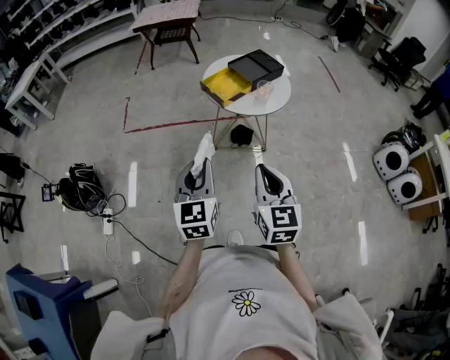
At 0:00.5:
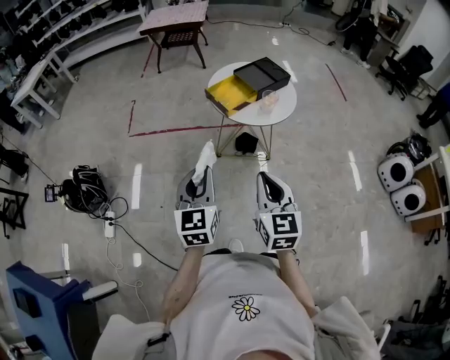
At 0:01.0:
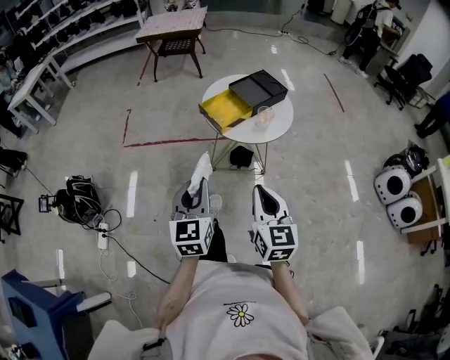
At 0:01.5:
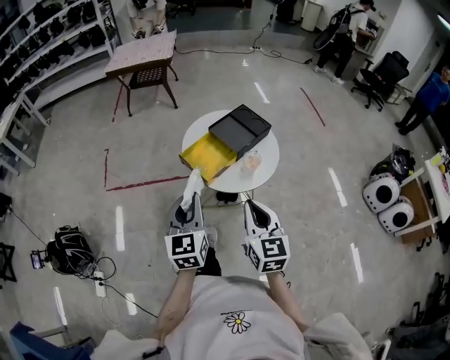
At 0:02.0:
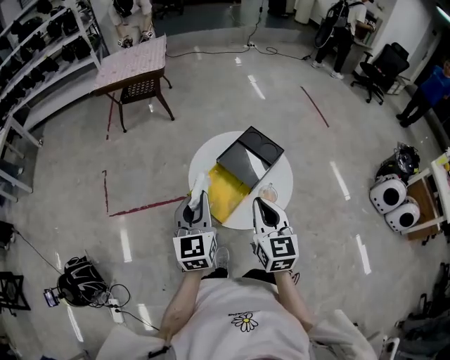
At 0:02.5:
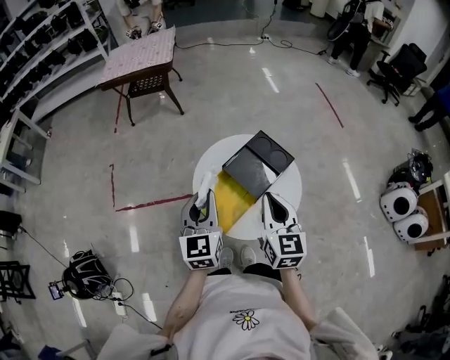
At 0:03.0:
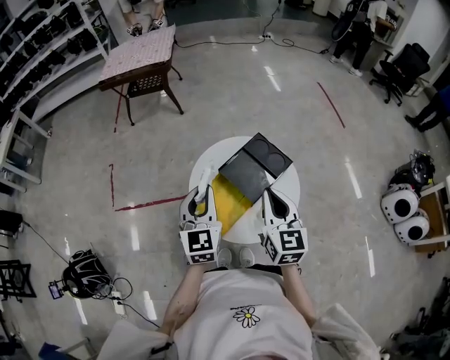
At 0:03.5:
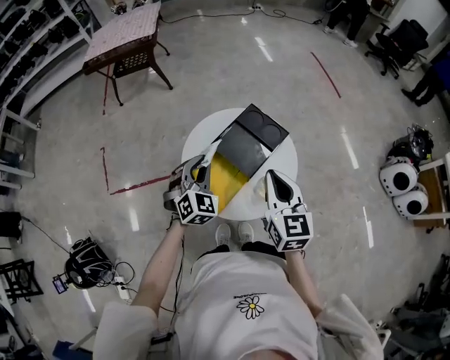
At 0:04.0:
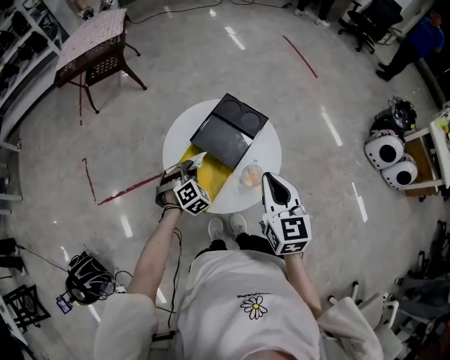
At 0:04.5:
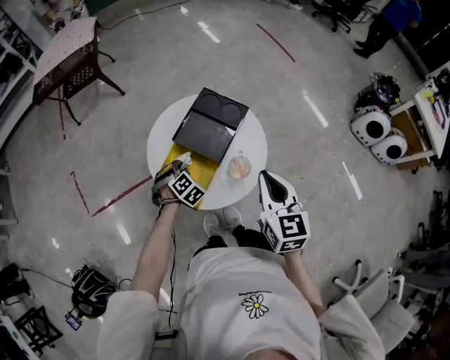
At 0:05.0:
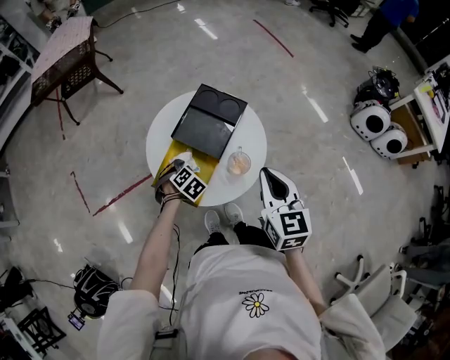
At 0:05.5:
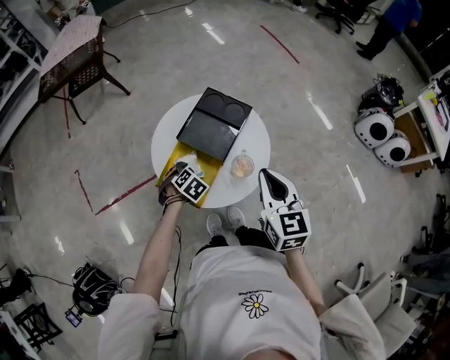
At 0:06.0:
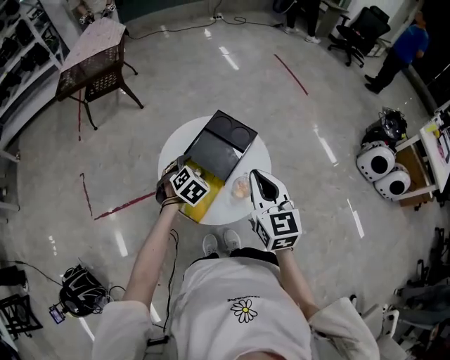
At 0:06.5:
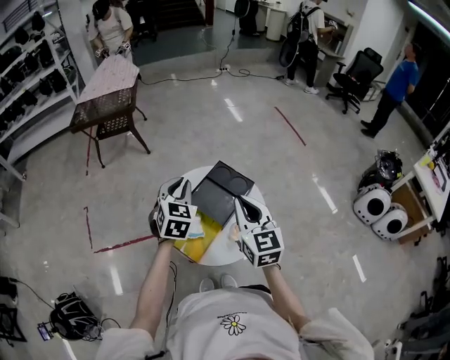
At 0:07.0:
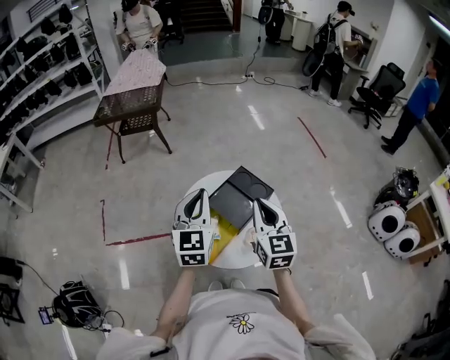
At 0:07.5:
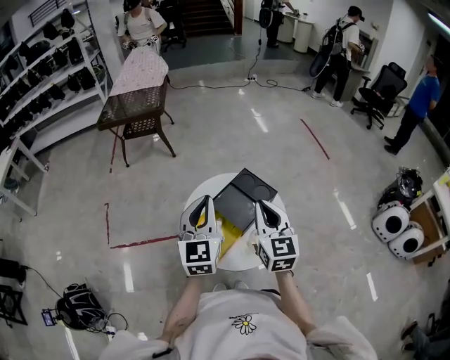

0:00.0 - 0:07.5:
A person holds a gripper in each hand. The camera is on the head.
0:00.0 - 0:02.0: The pair of grippers is taken forward, roughly 40 cm.
0:02.0 - 0:04.0: The left gripper is displaced downward and forward by roughly 25 cm, and twists roughly 60 degrees clockwise, seen from behind. The right gripper shifts roughly 10 cm to the right.
0:04.0 - 0:05.5: The left gripper moves about 5 cm, swivels about 30 degrees, and opens up.
0:05.5 - 0:07.5: The left gripper is displaced upward by approximately 35 cm, angles its fingers upward, by approximately 70 degrees, and closes. Meanwhile the right gripper travels forward, upward and to the left by approximately 15 cm.

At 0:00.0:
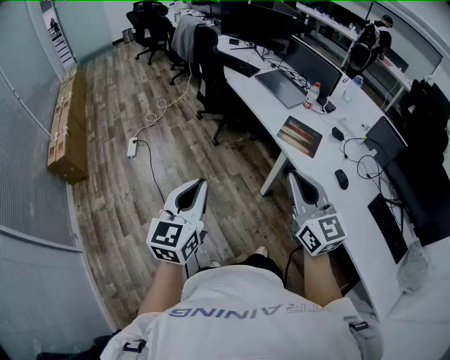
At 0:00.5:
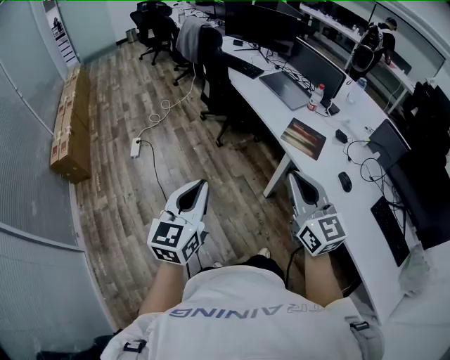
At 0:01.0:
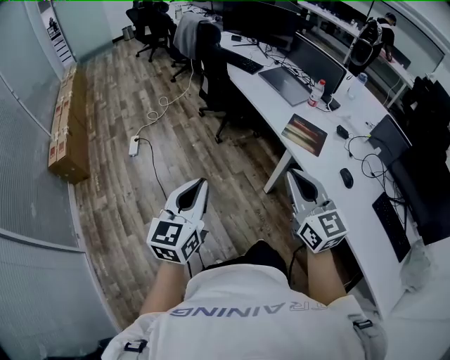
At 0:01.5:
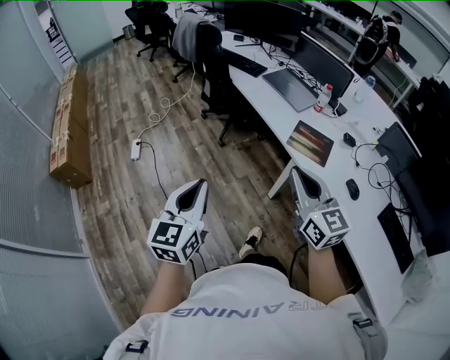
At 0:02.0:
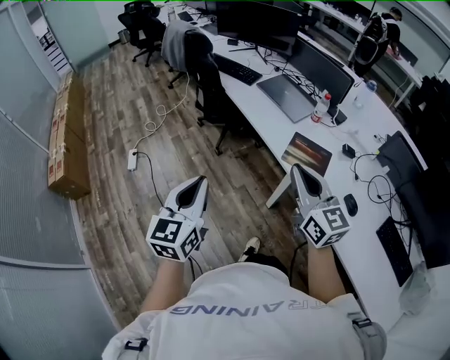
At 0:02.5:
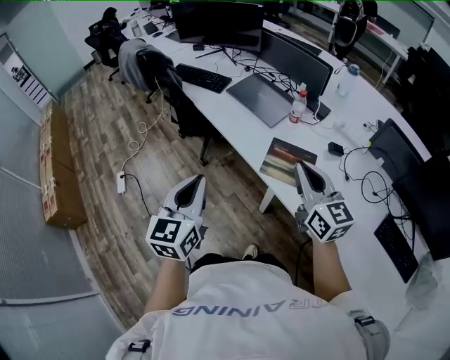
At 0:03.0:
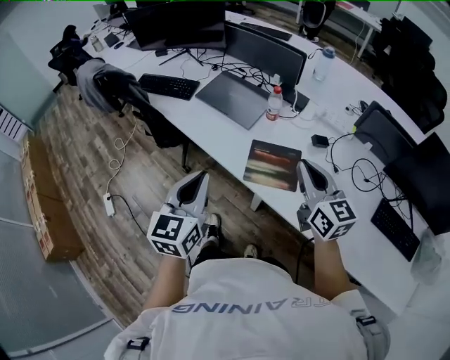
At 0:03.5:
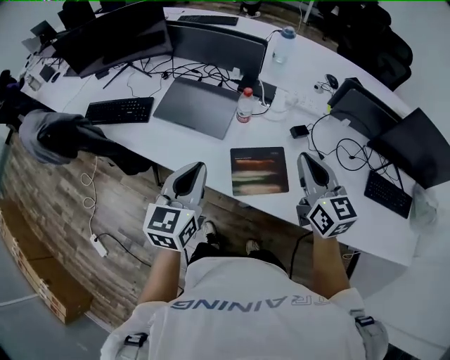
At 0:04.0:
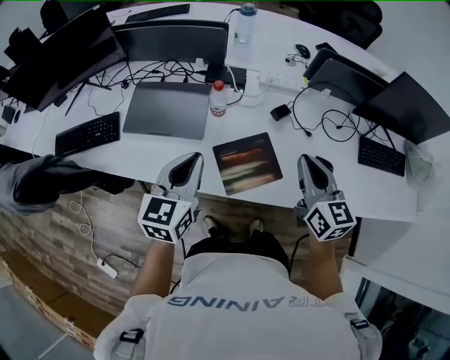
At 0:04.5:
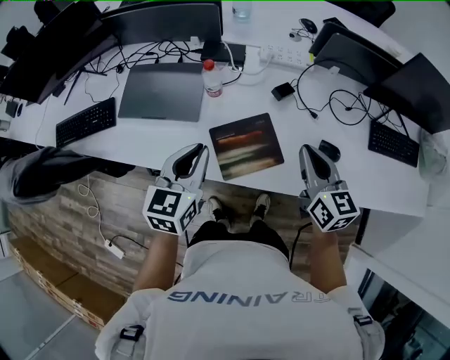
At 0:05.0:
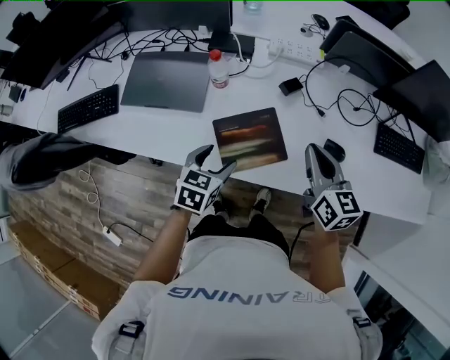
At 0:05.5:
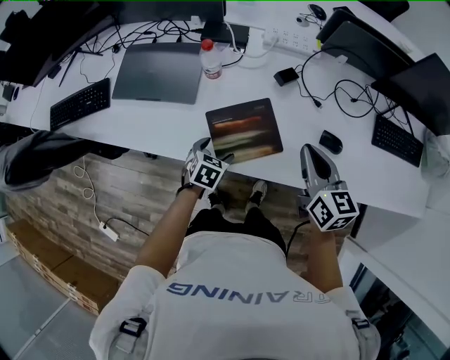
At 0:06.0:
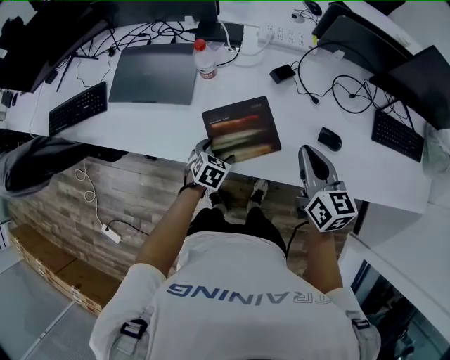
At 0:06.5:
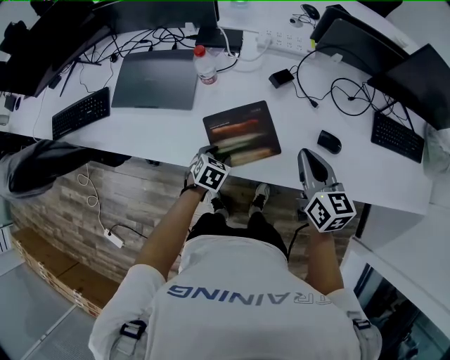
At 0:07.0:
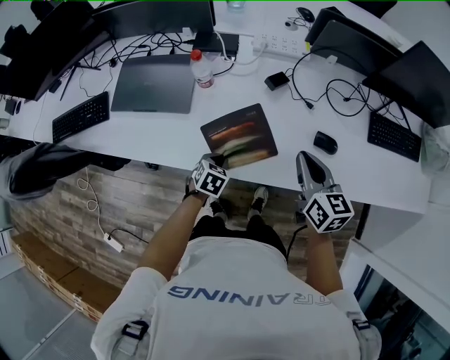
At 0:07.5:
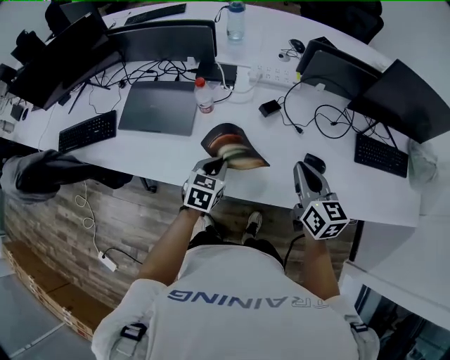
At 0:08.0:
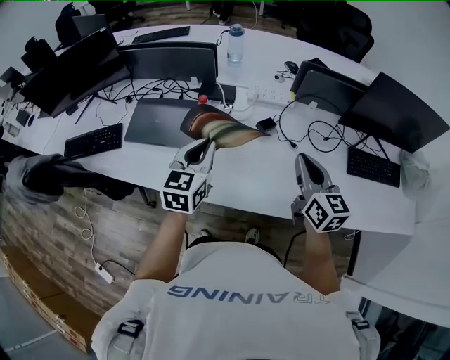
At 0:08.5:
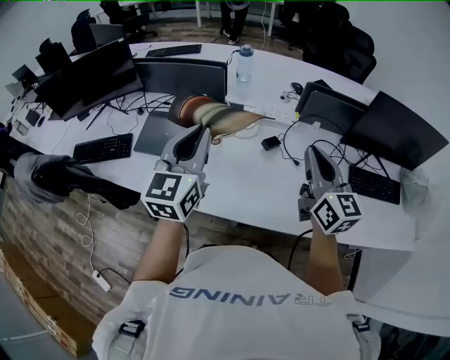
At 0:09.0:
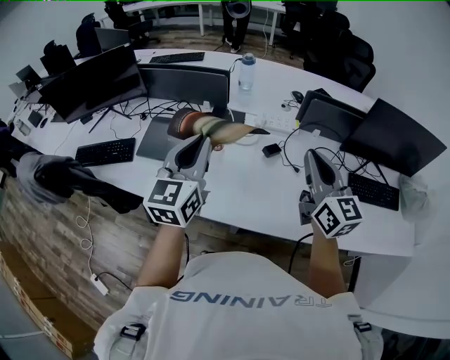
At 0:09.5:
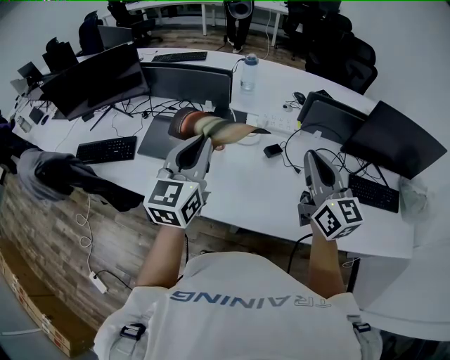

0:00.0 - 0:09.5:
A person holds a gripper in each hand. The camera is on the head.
0:00.0 - 0:02.0: The two grippers go some 20 cm forward.
0:02.0 - 0:04.0: The right gripper moves approximately 30 cm, and changes its angle by about 60 degrees, while the left gripper moves roughly 50 cm, and swivels about 50 degrees.
0:04.0 - 0:05.5: The left gripper heads downward, covering some 30 cm, tilts its fingers some 40 degrees downward, and opens its fingers; the right gripper travels downward and to the right by some 10 cm.
0:05.5 - 0:07.5: The left gripper moves upward, approximately 10 cm, and closes its fingers.
0:07.5 - 0:09.5: The right gripper heads upward, covering about 20 cm, and changes its angle by about 30 degrees; the left gripper heads upward, covering about 30 cm, and angles its fingers upward, by some 40 degrees.

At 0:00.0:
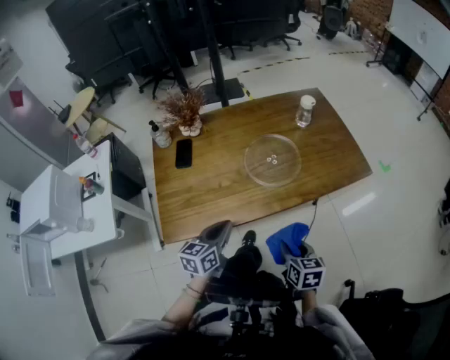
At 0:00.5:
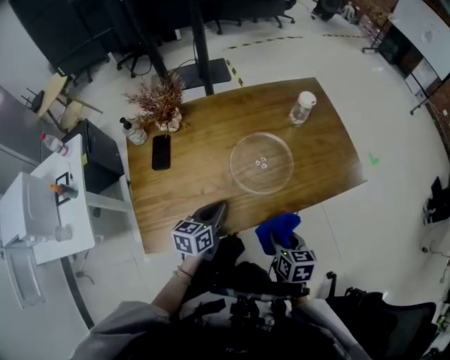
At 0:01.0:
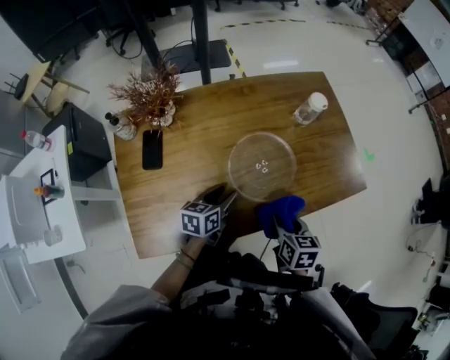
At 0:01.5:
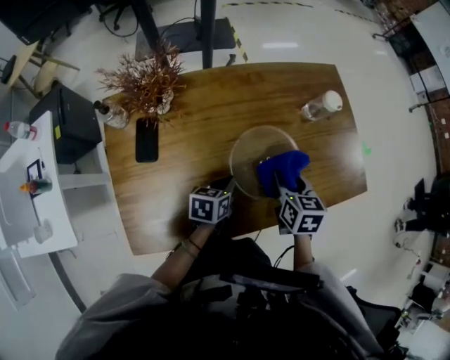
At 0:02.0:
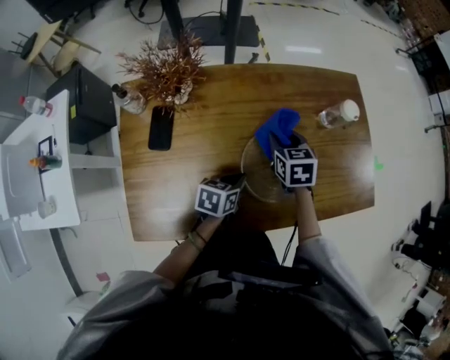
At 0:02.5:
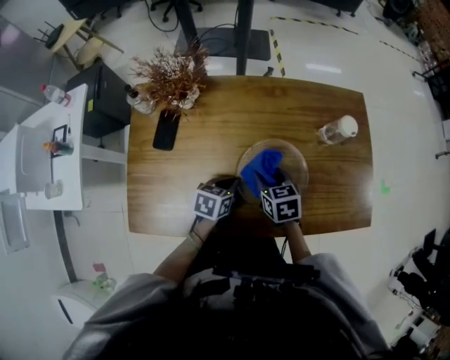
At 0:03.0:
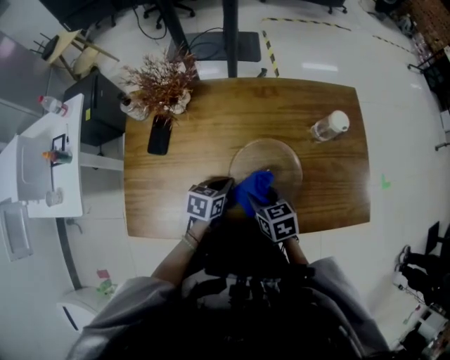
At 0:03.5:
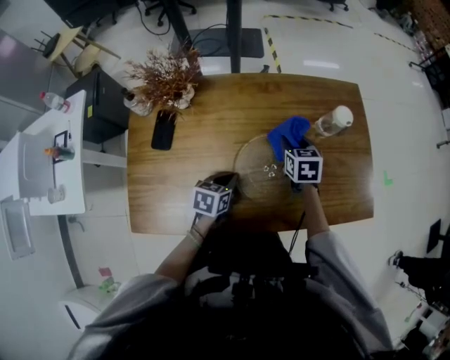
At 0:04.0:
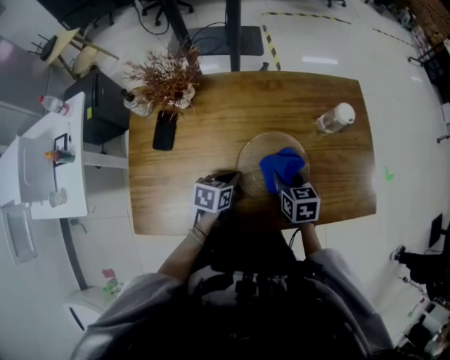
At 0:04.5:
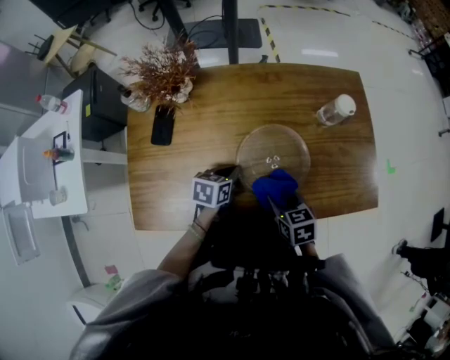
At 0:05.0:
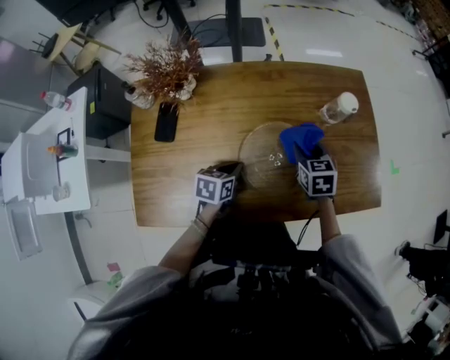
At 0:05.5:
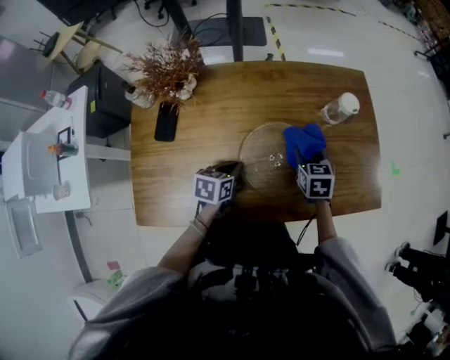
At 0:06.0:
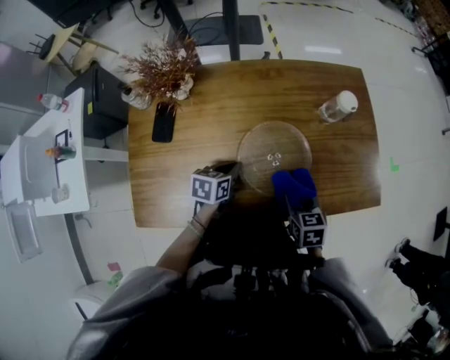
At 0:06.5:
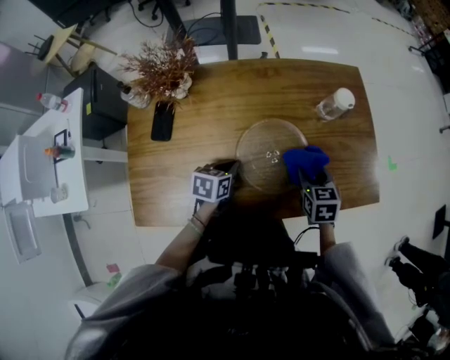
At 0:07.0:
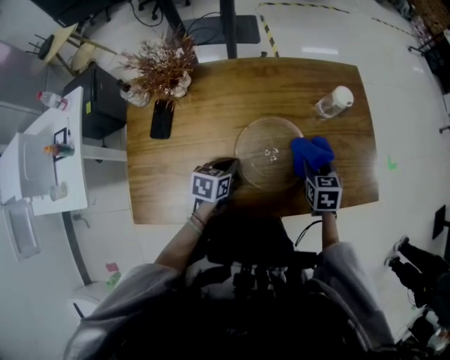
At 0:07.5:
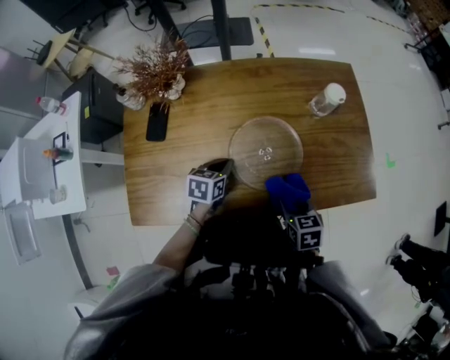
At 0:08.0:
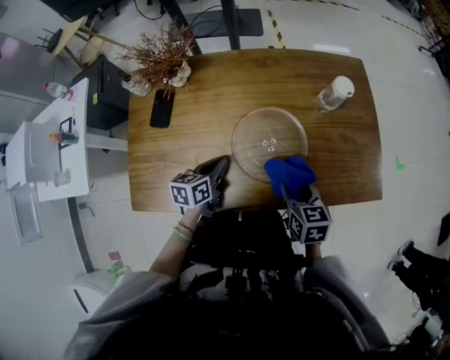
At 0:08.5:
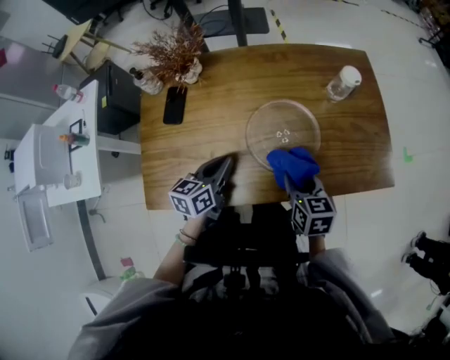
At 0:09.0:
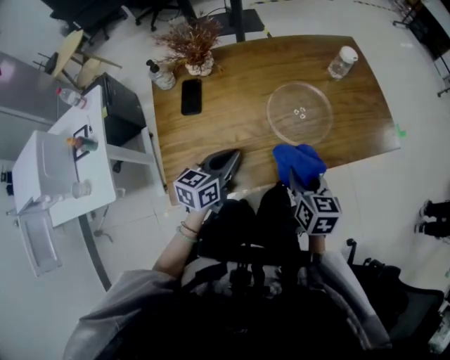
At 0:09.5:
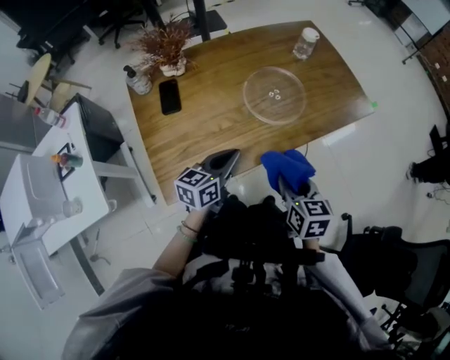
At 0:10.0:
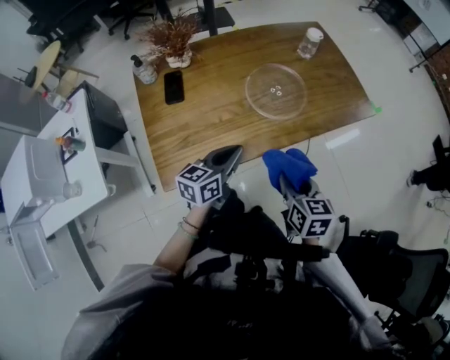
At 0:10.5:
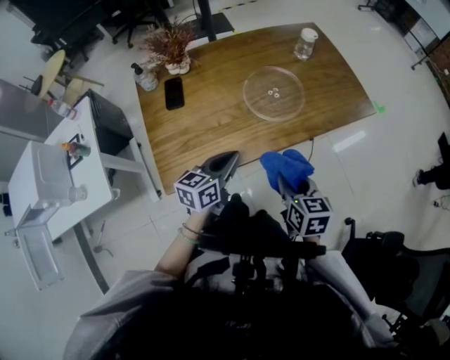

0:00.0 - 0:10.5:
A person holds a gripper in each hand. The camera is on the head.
0:00.0 - 0:02.0: The left gripper moves forward, roughly 25 cm, changes its angle by some 30 degrees, and opens, then closes once more; the right gripper goes about 40 cm forward, and rotates approximately 20 degrees.
0:02.0 - 0:04.0: The right gripper moves forward and backward over about 20 cm, changing direction 2 times.
0:04.0 - 0:06.5: The right gripper moves forward and backward over approximately 15 cm, changing direction 3 times.
0:06.5 - 0:08.5: The left gripper is displaced upward and backward by approximately 10 cm, and turns by approximately 20 degrees, while the right gripper moves backward and to the left, roughly 10 cm.
0:08.5 - 0:10.5: Both grippers travel together backward, roughly 20 cm. The left gripper turns by approximately 20 degrees.
